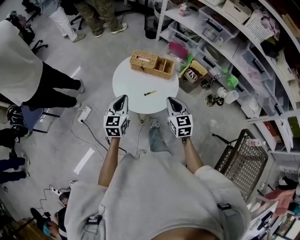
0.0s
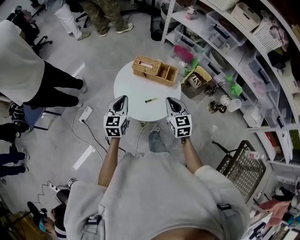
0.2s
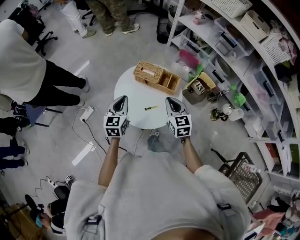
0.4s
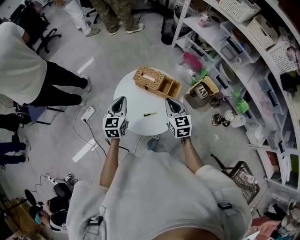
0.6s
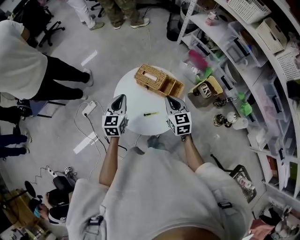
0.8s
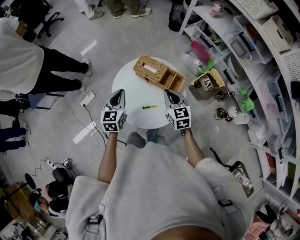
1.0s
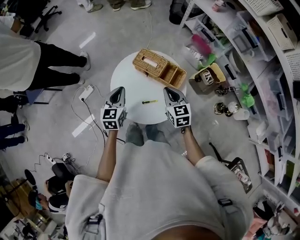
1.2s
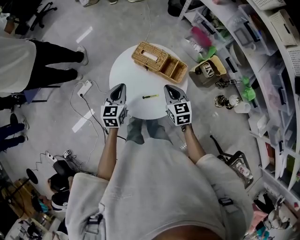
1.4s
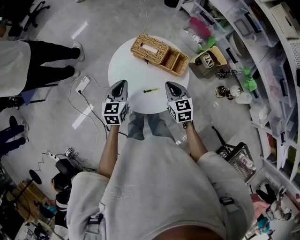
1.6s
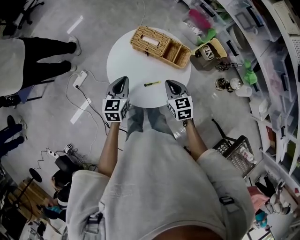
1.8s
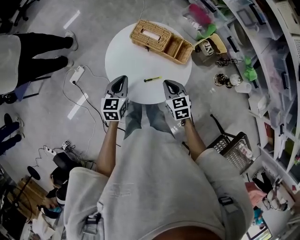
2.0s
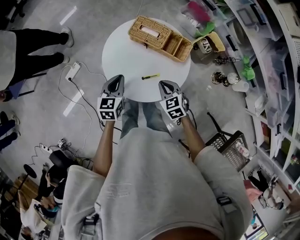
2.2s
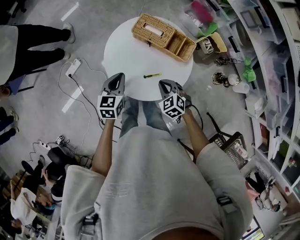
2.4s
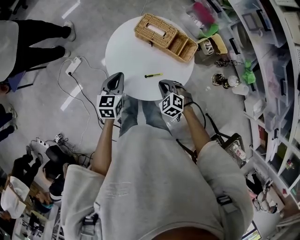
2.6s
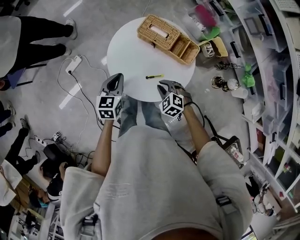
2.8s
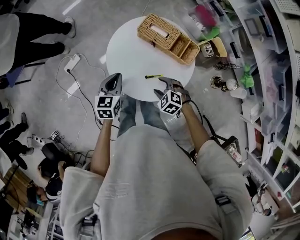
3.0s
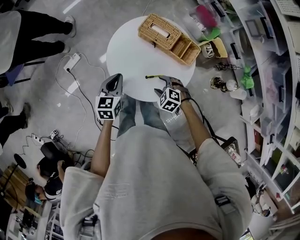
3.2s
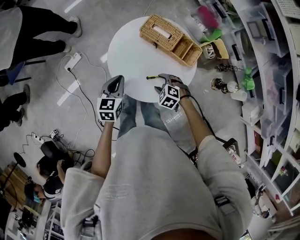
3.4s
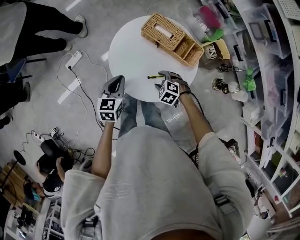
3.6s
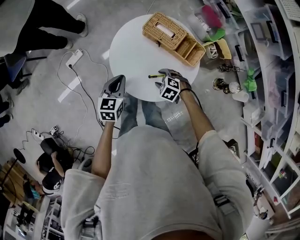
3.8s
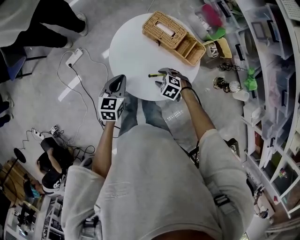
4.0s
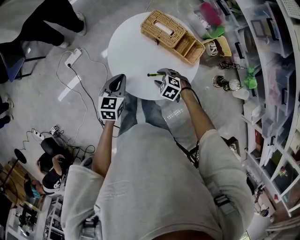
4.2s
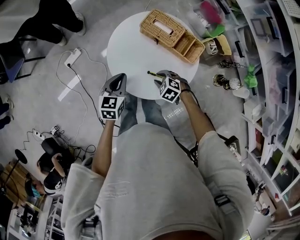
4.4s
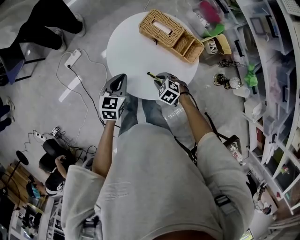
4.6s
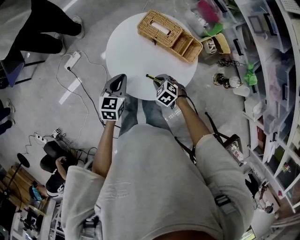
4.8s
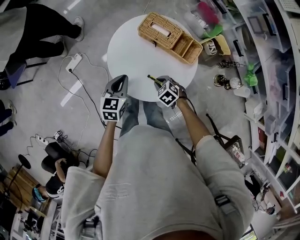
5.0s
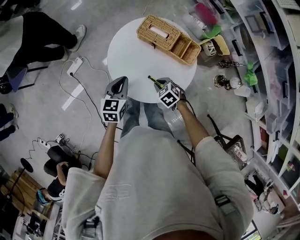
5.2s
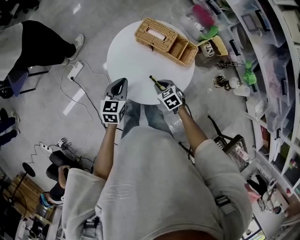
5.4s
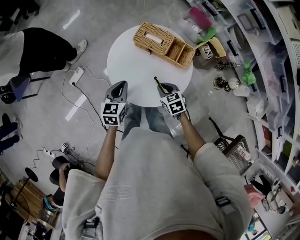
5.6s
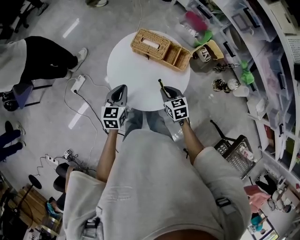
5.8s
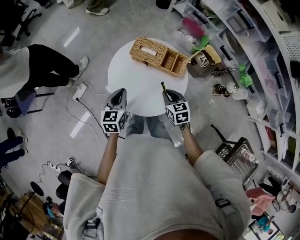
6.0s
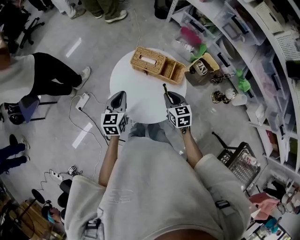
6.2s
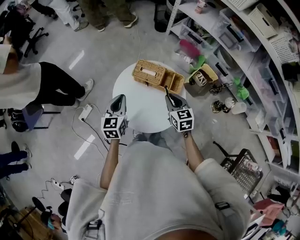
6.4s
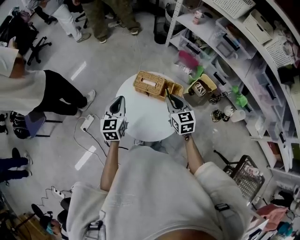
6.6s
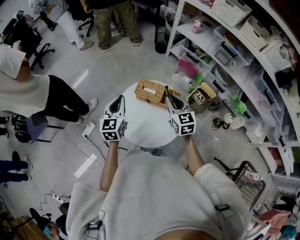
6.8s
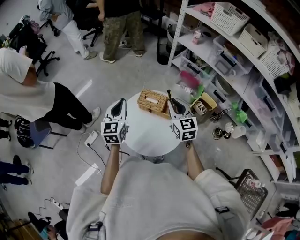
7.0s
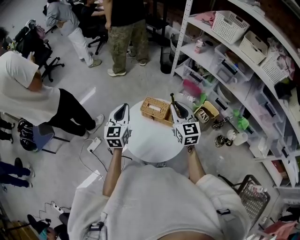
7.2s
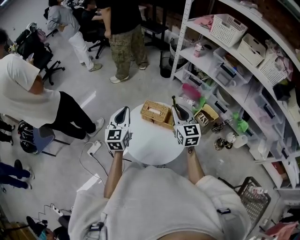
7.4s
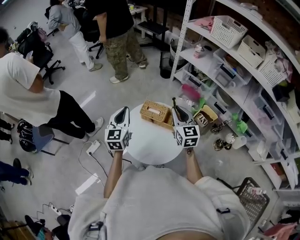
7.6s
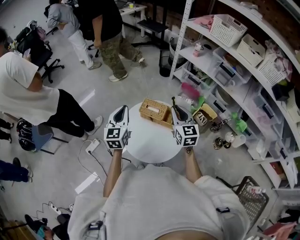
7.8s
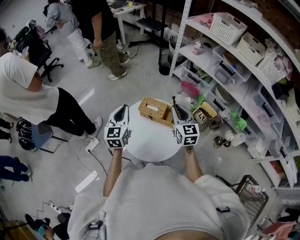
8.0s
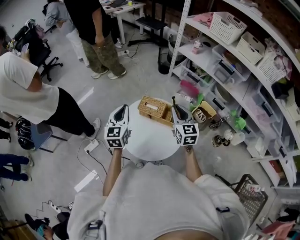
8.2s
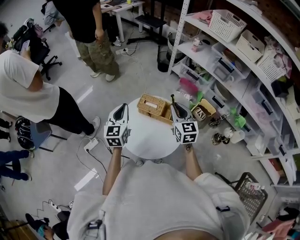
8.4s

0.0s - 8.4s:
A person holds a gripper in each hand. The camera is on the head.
0.0s - 1.4s: Both grippers move forward and downward, some 15 cm. The right gripper turns by approximately 20 degrees.
1.4s - 2.8s: The right gripper moves downward, backward and to the left, about 15 cm, and rotates approximately 50 degrees. Meanwhile the left gripper goes about 5 cm downward.
2.8s - 4.2s: The right gripper moves downward, roughly 5 cm, and opens up.
4.2s - 5.6s: The right gripper is displaced upward by approximately 5 cm, twists some 40 degrees clockwise, seen from behind, and closes its fingers.
5.6s - 7.0s: The grippers both shift upward and forward by about 30 cm. The left gripper rotates approximately 30 degrees. The right gripper points its fingers about 40 degrees further upward.
7.0s - 8.4s: The grippers make only small movements.

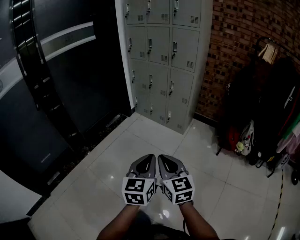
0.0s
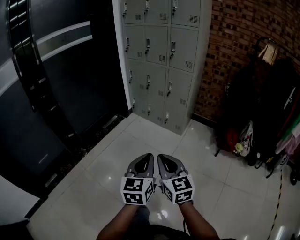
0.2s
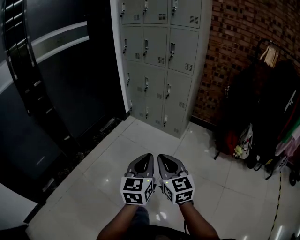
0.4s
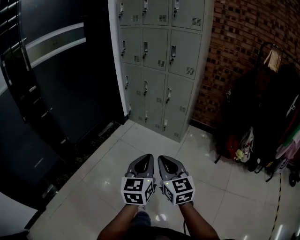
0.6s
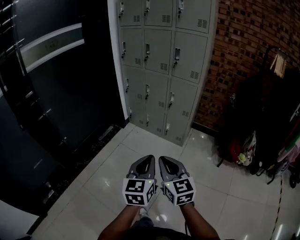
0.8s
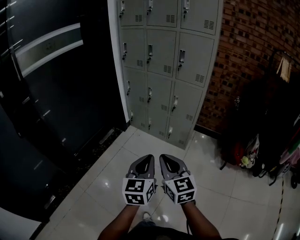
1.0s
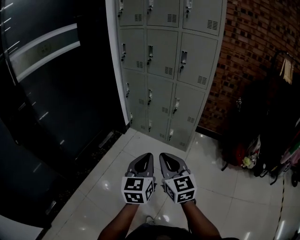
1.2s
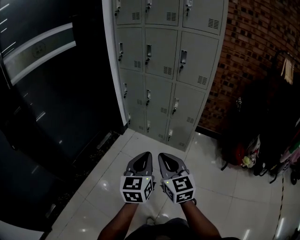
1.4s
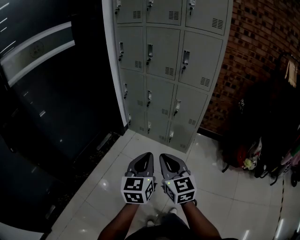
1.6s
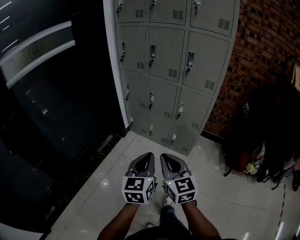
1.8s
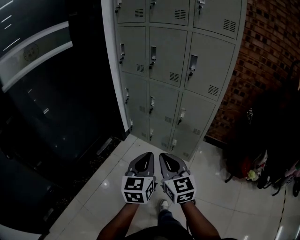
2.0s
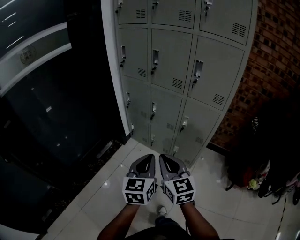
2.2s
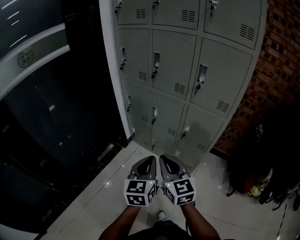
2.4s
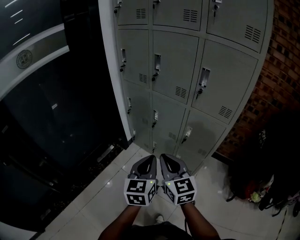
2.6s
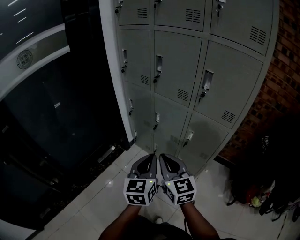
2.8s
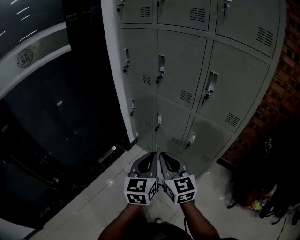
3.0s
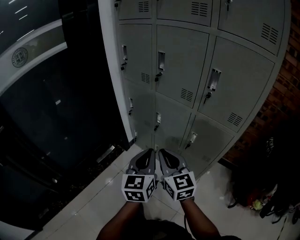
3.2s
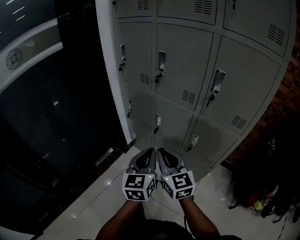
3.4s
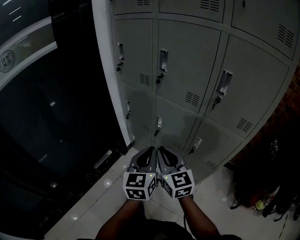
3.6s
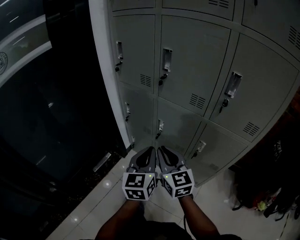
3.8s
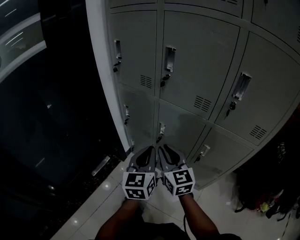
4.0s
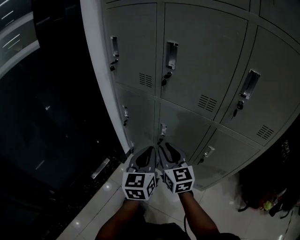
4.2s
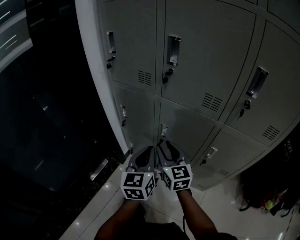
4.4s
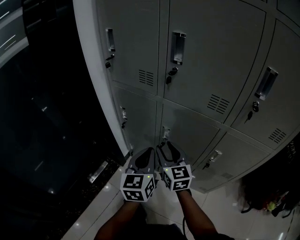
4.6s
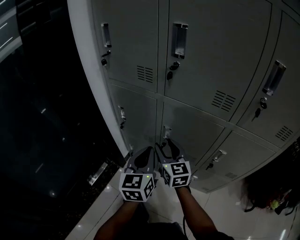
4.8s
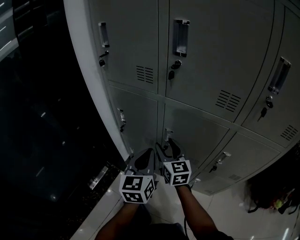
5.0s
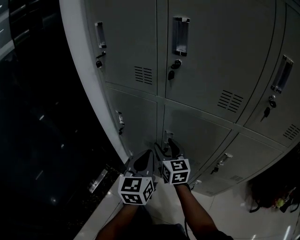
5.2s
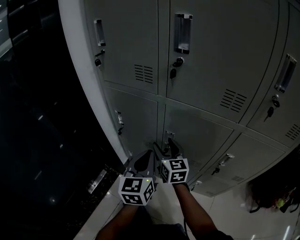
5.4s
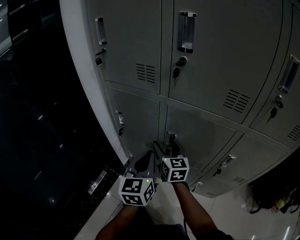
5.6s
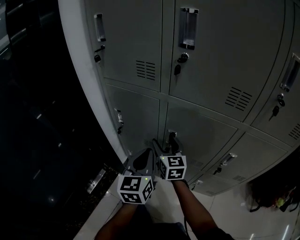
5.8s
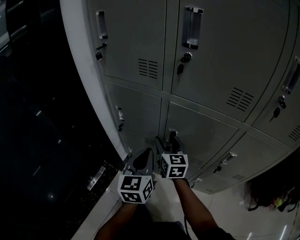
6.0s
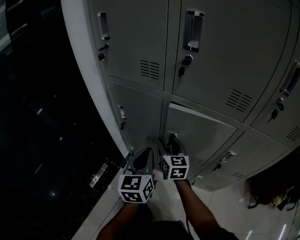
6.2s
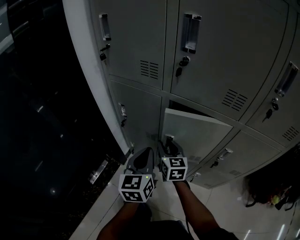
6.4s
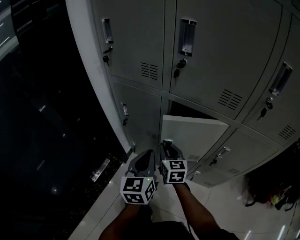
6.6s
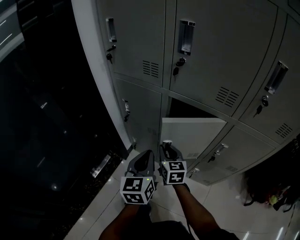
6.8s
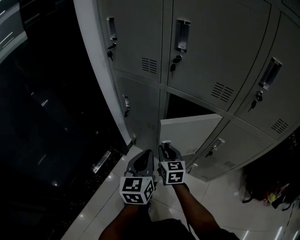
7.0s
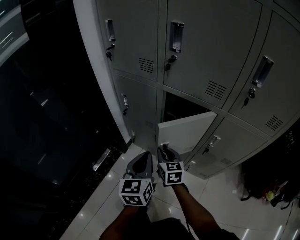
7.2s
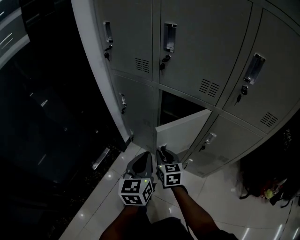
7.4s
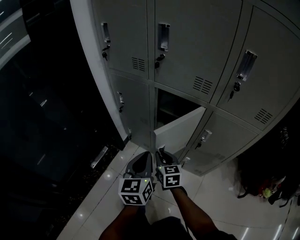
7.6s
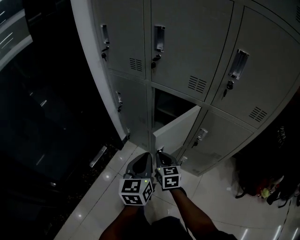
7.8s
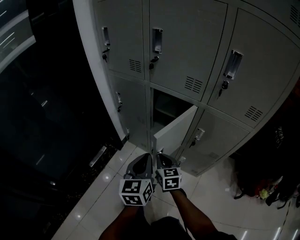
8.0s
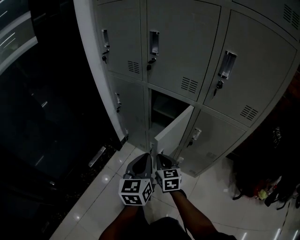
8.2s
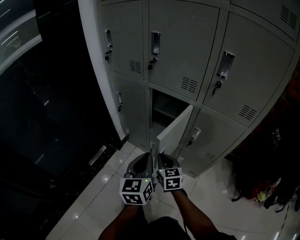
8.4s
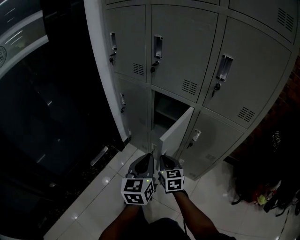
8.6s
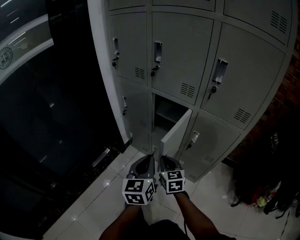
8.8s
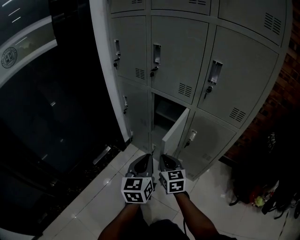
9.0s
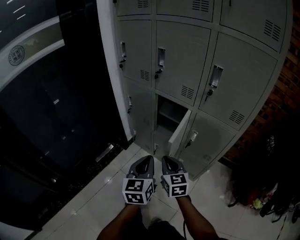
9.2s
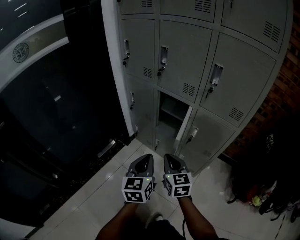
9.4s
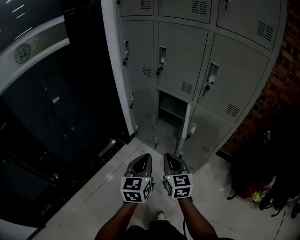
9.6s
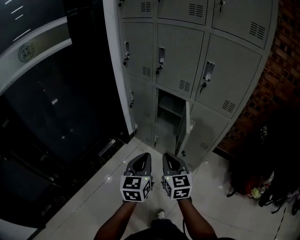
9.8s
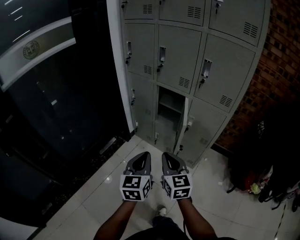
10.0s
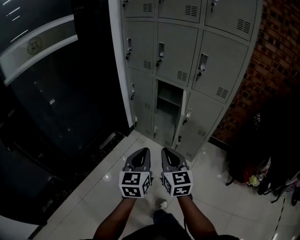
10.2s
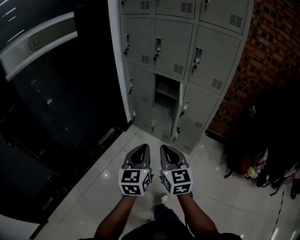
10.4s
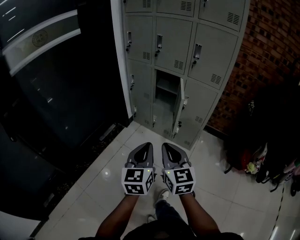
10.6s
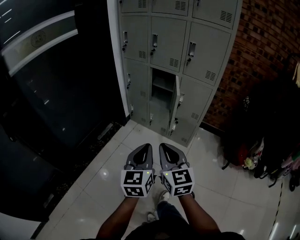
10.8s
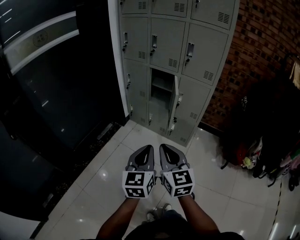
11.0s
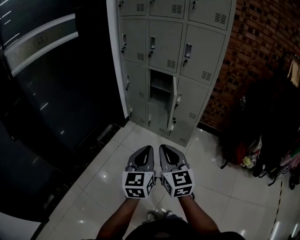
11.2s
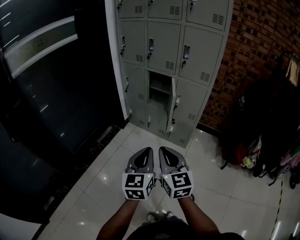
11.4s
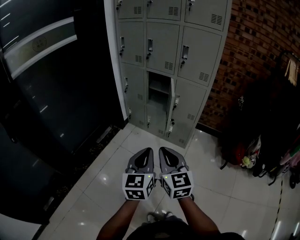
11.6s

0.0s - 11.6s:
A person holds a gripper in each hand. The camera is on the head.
0.0s - 1.4s: Both grippers move forward, some 35 cm.
1.4s - 2.8s: The two grippers go some 30 cm forward.
2.8s - 4.4s: The two grippers go approximately 35 cm forward and downward. The right gripper opens up.
4.4s - 5.8s: Both grippers travel together forward and downward, approximately 15 cm. The right gripper opens up.
5.8s - 7.2s: The grippers both shift backward by about 15 cm. The right gripper closes.
7.2s - 8.8s: The two grippers go about 20 cm backward, to the right and upward.
8.8s - 10.2s: The right gripper is displaced backward and upward by approximately 35 cm, while the left gripper moves backward, some 25 cm.
10.2s - 11.6s: Both grippers move backward, some 20 cm.

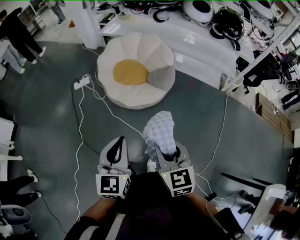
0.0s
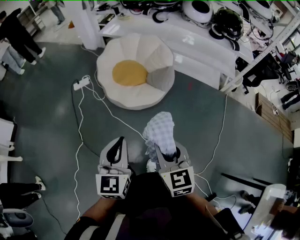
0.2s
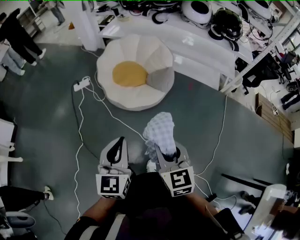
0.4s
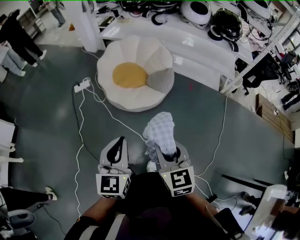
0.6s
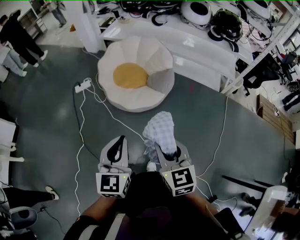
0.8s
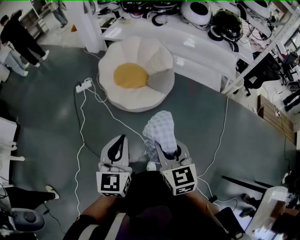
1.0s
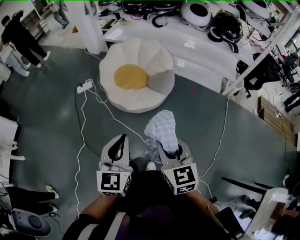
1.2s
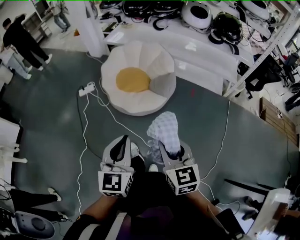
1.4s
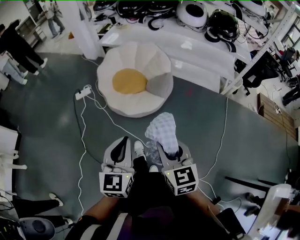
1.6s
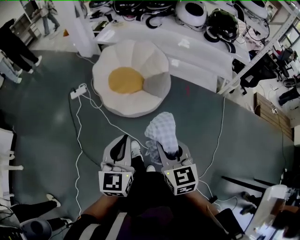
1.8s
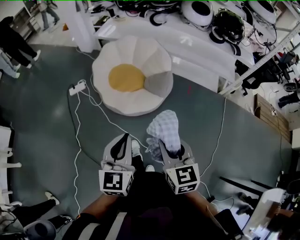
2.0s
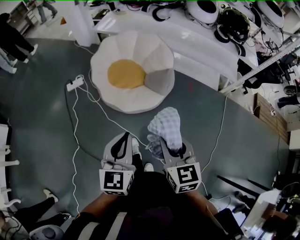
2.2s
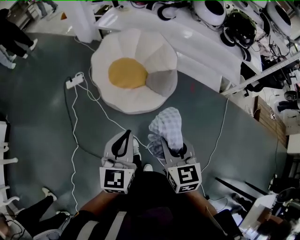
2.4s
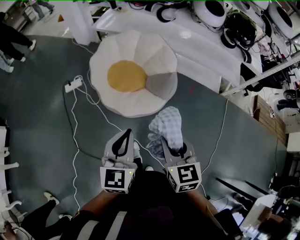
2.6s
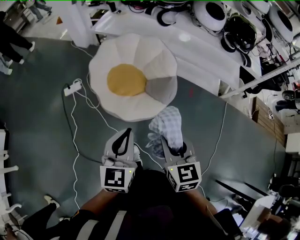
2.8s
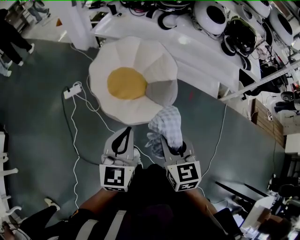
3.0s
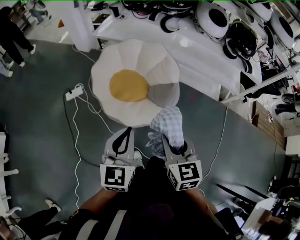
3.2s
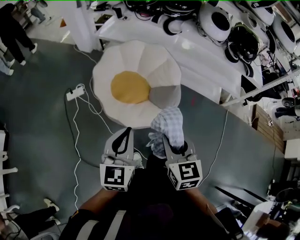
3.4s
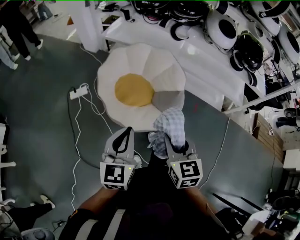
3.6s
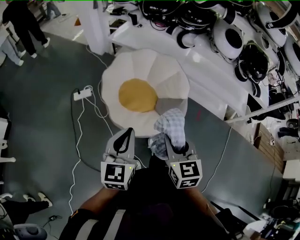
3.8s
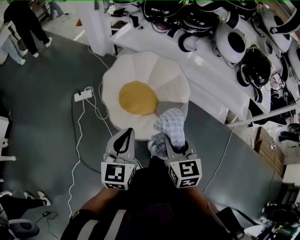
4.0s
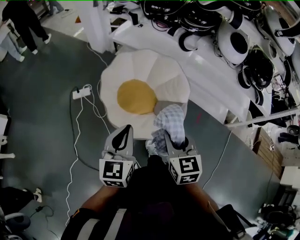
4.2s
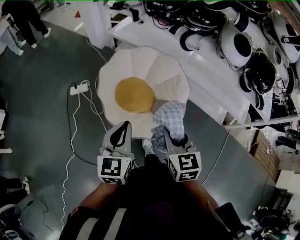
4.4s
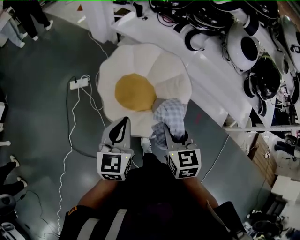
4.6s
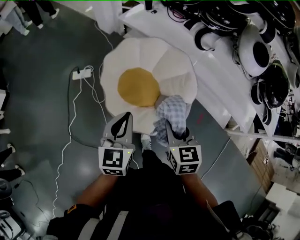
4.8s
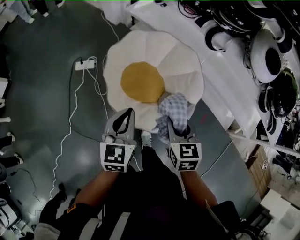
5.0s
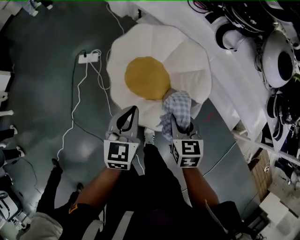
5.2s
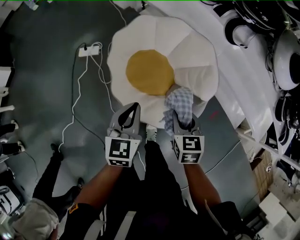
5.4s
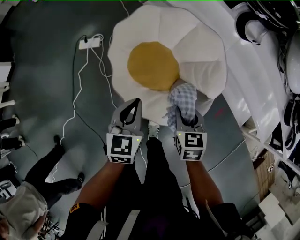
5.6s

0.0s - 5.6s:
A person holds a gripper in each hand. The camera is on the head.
0.0s - 1.4s: The grippers make only small movements.
1.4s - 2.8s: The two grippers go roughly 25 cm forward.
2.8s - 4.2s: Both grippers move forward, about 15 cm.
4.2s - 5.6s: Both grippers move downward and forward, roughly 30 cm. The right gripper swivels about 20 degrees.
